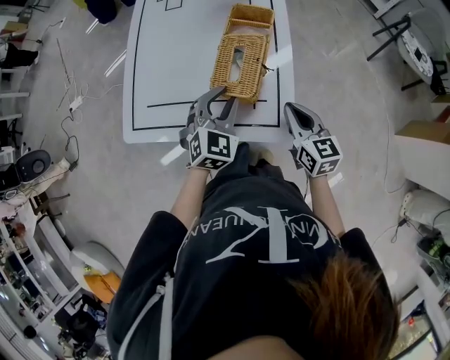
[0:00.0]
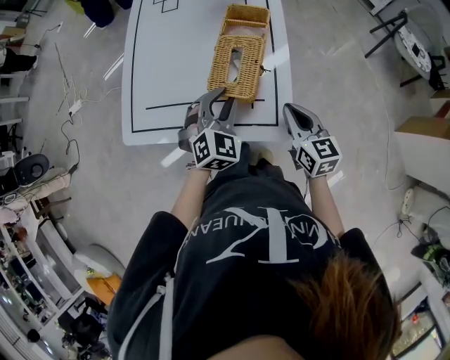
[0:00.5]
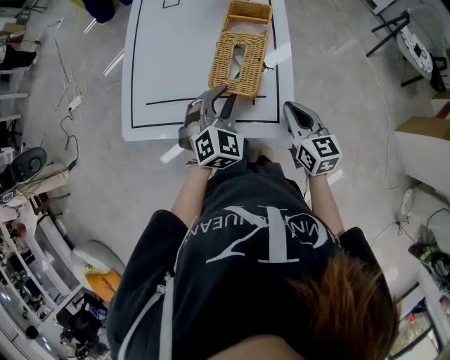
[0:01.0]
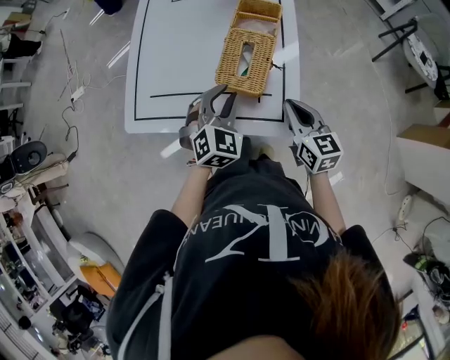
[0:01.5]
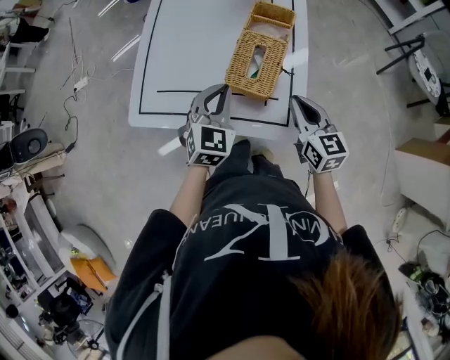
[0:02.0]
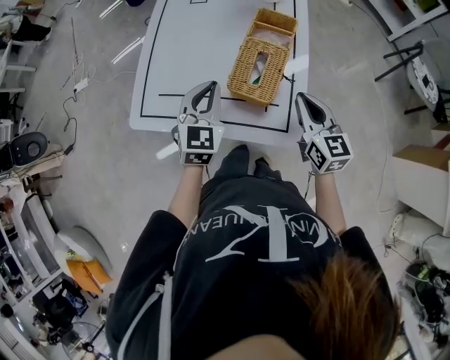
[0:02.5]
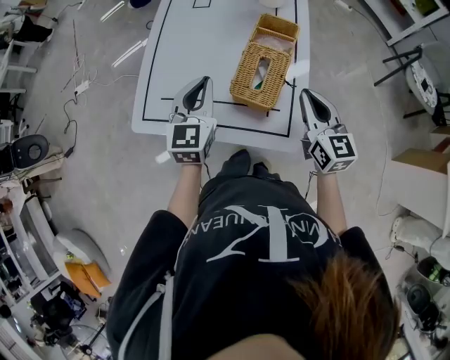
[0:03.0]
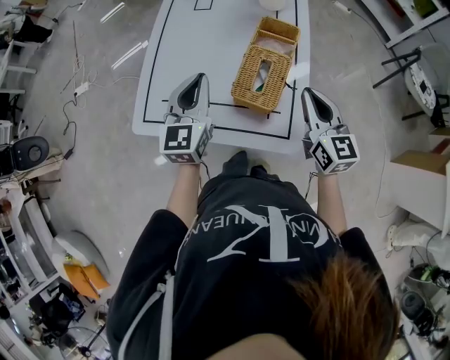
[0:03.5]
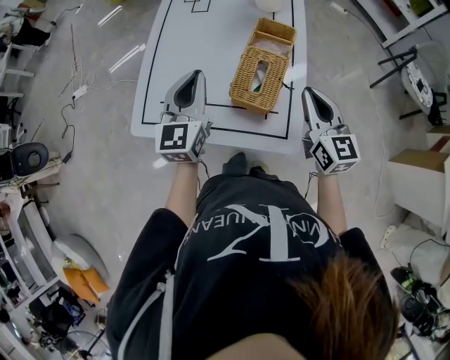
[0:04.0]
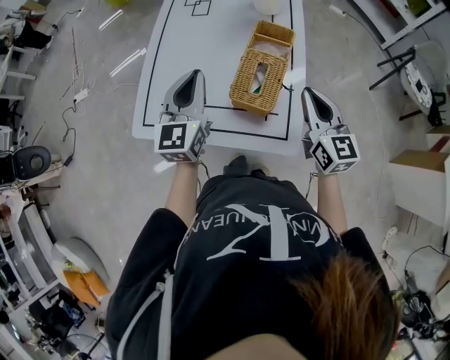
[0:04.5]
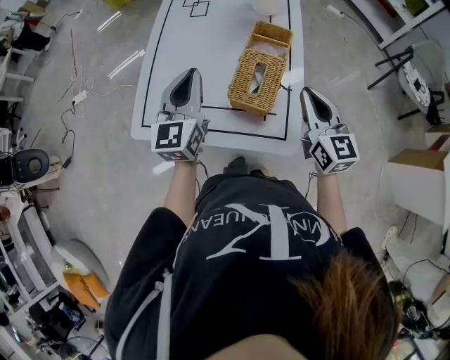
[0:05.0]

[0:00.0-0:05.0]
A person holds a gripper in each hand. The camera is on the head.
0:00.0 to 0:02.5: The left gripper shifts roughly 10 cm to the left, changes its angle by approximately 20 degrees, and closes, while the right gripper travels upward by some 5 cm.
0:02.5 to 0:05.0: The grippers both shift upward by roughly 10 cm. The left gripper rotates about 30 degrees.

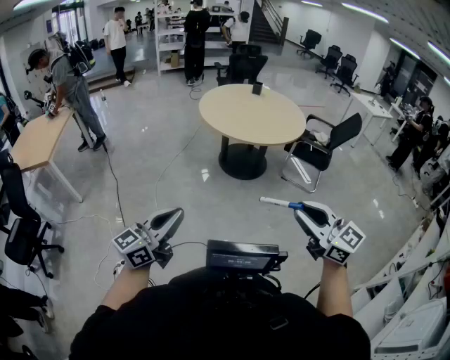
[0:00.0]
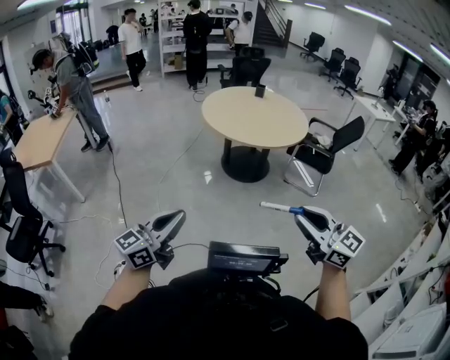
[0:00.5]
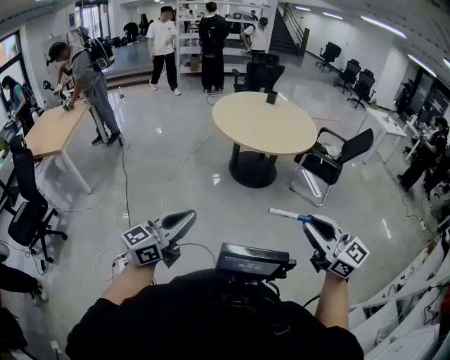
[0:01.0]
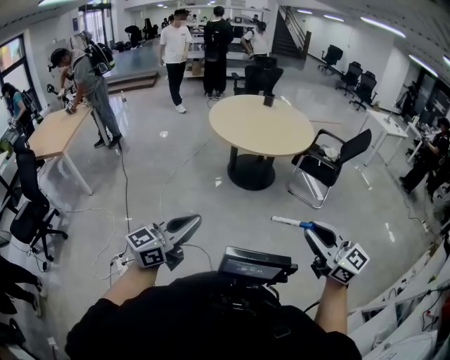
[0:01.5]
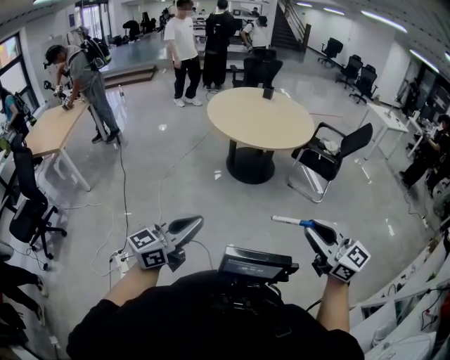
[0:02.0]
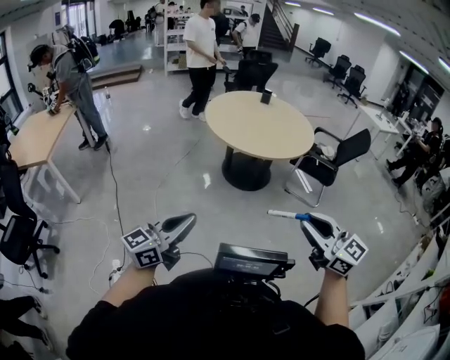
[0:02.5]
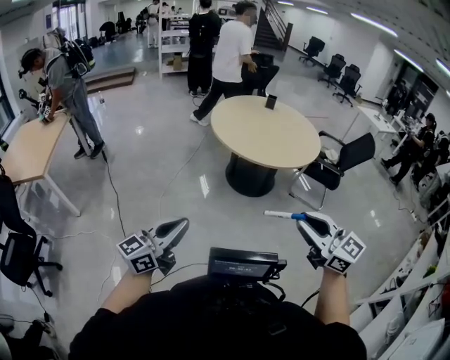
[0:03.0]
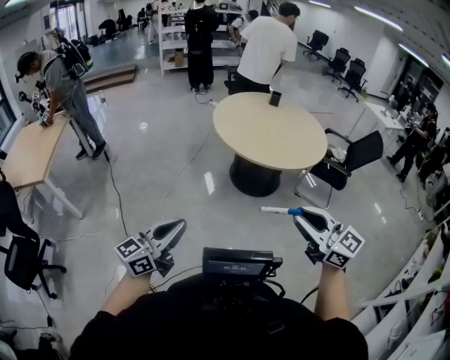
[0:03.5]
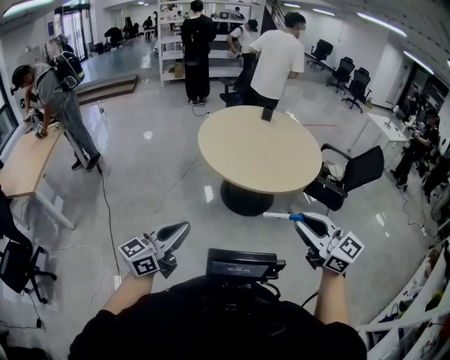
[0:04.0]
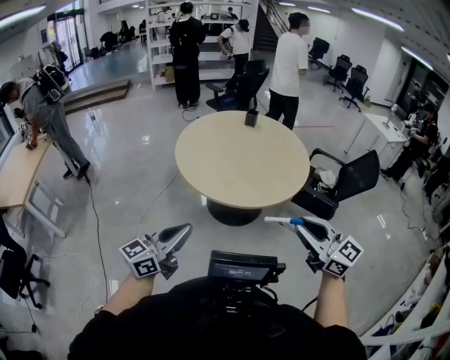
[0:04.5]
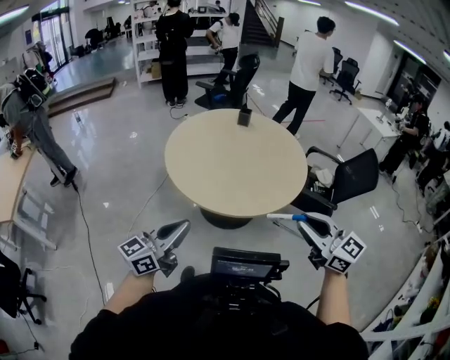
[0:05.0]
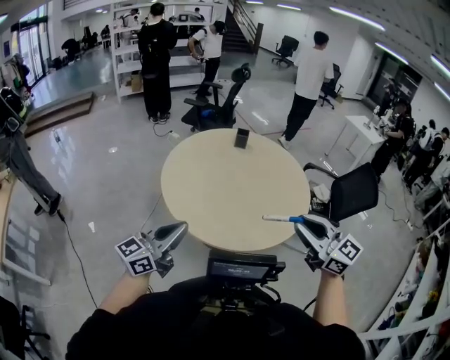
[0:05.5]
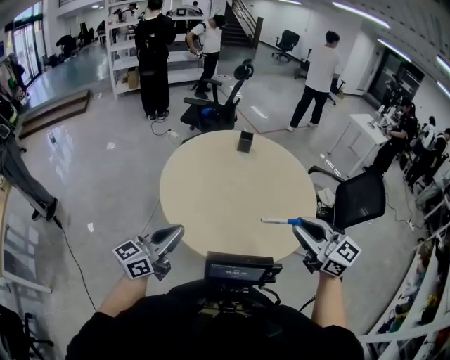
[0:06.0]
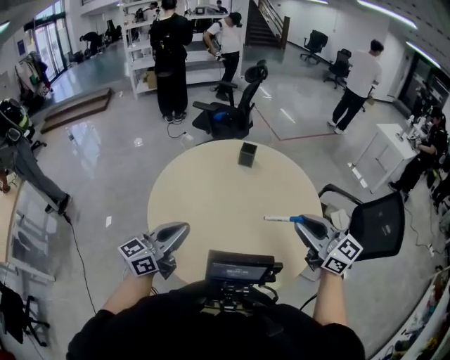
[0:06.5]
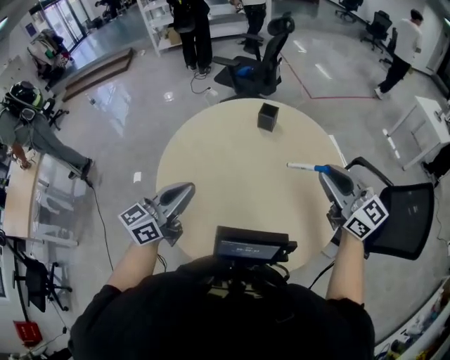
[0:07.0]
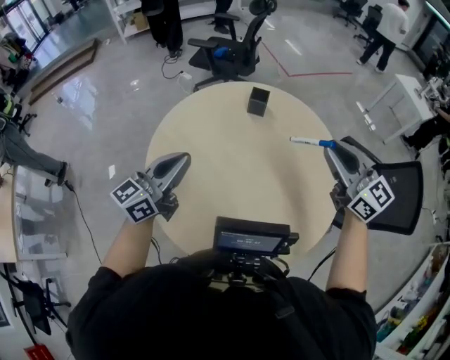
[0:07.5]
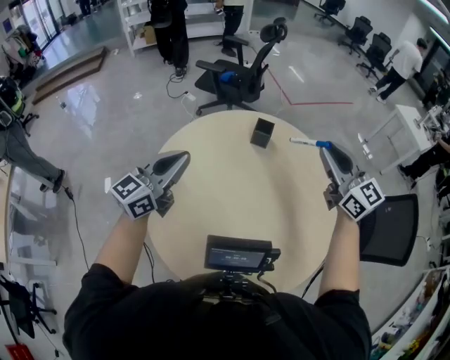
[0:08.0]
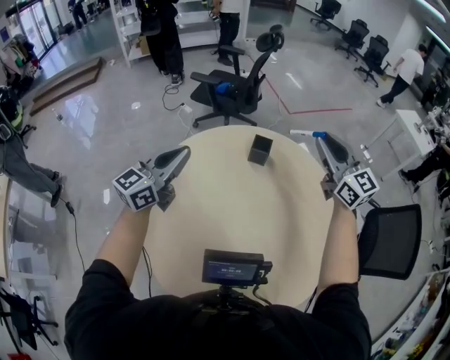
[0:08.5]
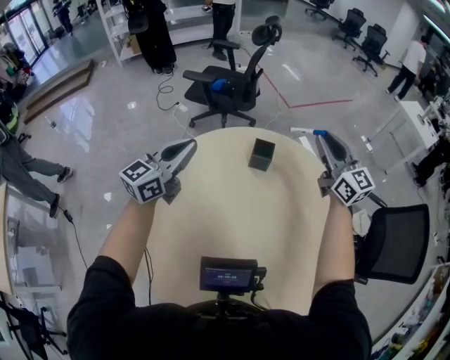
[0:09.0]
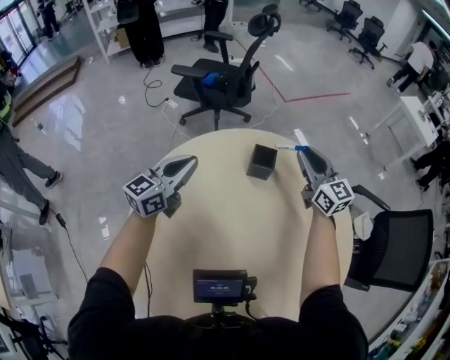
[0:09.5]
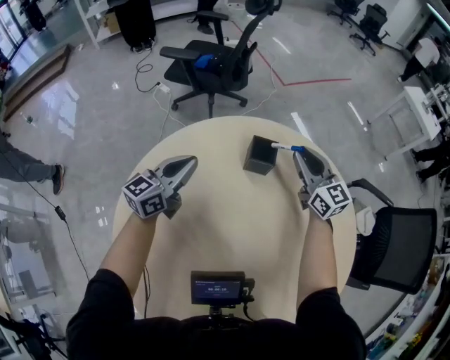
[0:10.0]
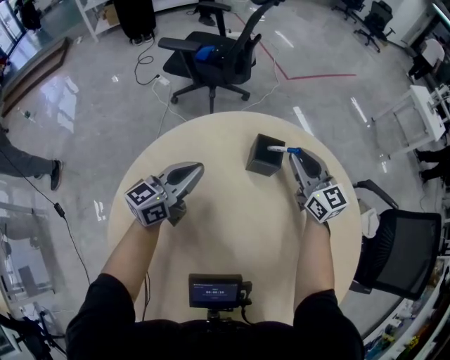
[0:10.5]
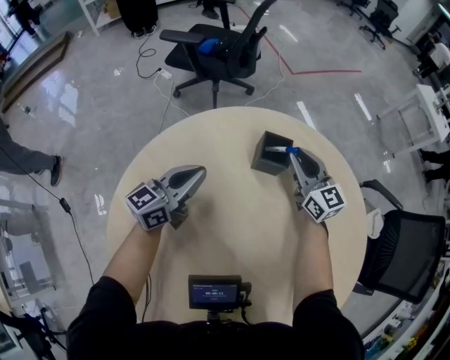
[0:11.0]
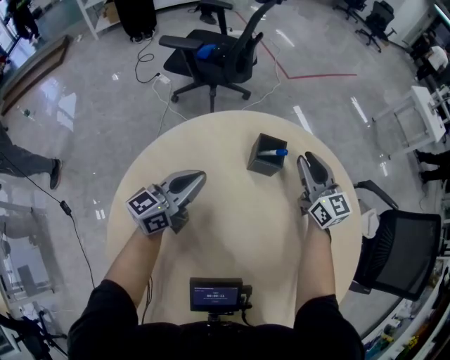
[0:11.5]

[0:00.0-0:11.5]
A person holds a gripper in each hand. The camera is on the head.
0:00.0 to 0:02.0: Both grippers travel together to the right, approximately 15 cm.
0:02.0 to 0:04.0: The grippers both shift forward by approximately 35 cm.
0:04.0 to 0:06.0: Both grippers are carried forward, about 50 cm.
0:06.0 to 0:07.5: The grippers both shift forward and to the right by approximately 35 cm.
0:07.5 to 0:09.5: The right gripper travels forward and downward by approximately 40 cm, while the left gripper moves forward, approximately 35 cm.
0:09.5 to 0:11.5: The grippers both shift downward by approximately 10 cm.

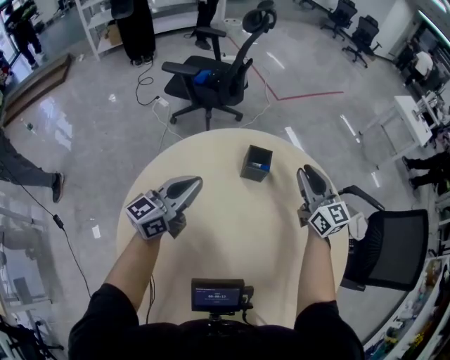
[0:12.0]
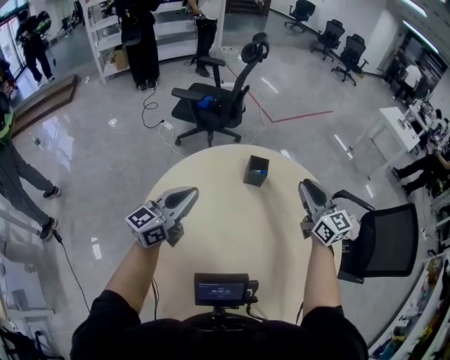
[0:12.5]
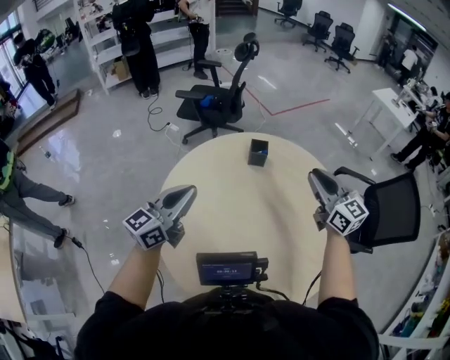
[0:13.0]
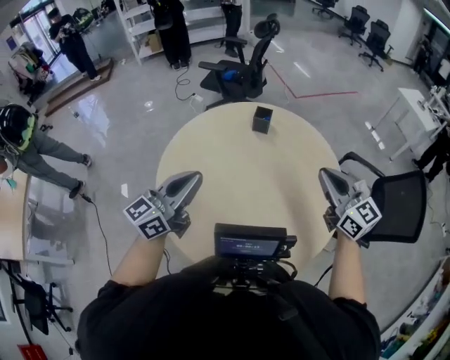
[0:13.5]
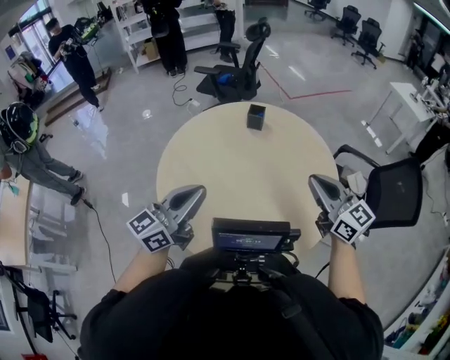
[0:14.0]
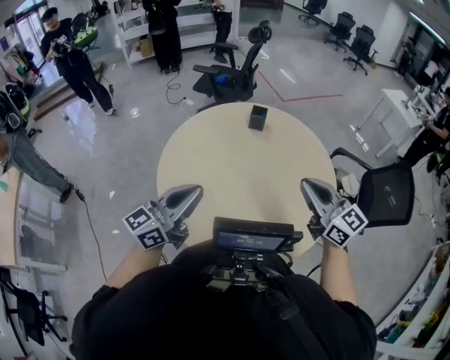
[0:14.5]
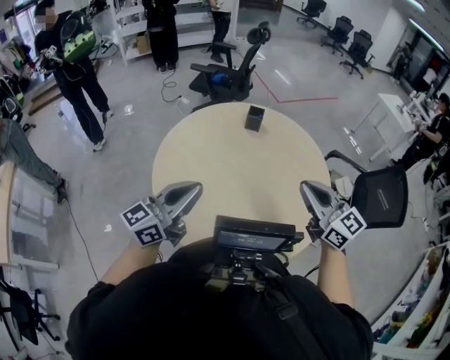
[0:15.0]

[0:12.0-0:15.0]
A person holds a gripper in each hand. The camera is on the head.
0:12.0 to 0:13.5: The two grippers go approximately 40 cm backward and upward.
0:13.5 to 0:15.0: The right gripper moves backward and to the left, about 10 cm, while the left gripper is displaced backward by roughly 5 cm.

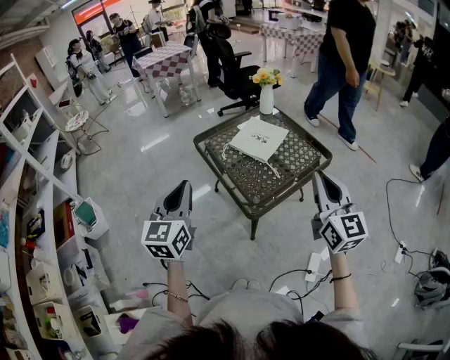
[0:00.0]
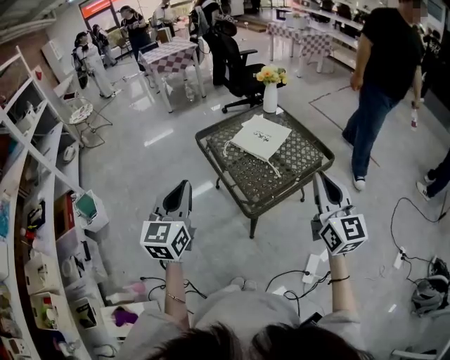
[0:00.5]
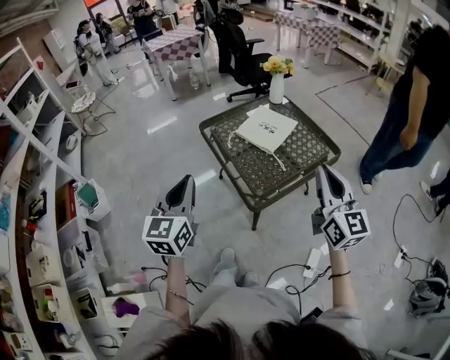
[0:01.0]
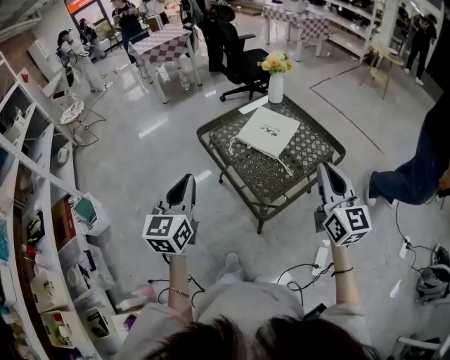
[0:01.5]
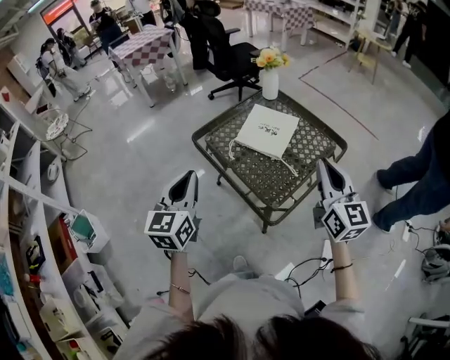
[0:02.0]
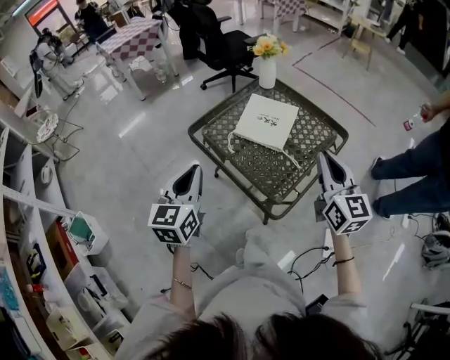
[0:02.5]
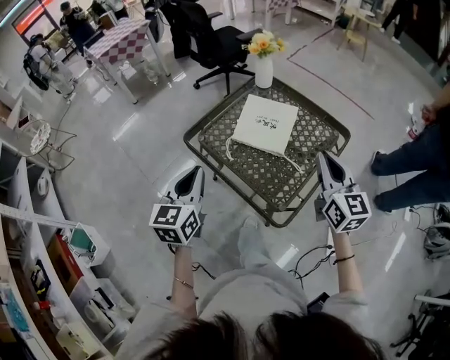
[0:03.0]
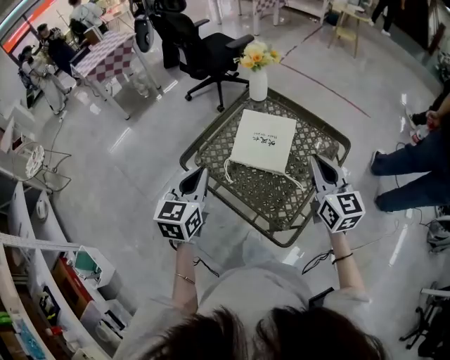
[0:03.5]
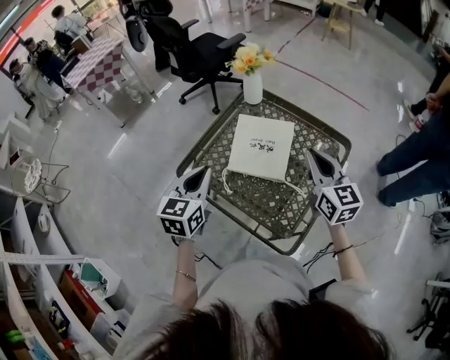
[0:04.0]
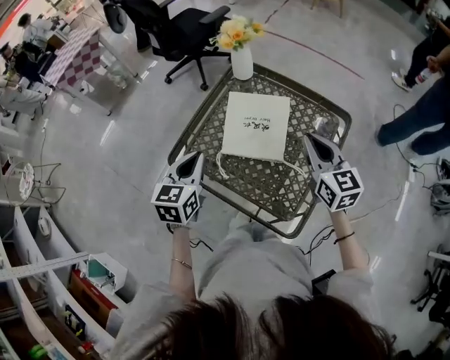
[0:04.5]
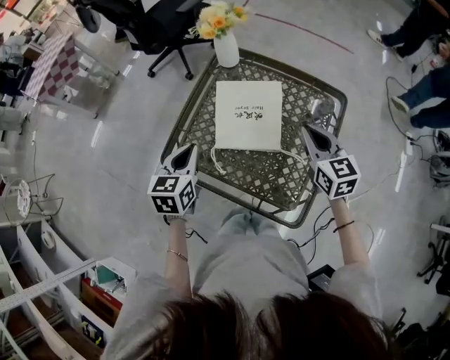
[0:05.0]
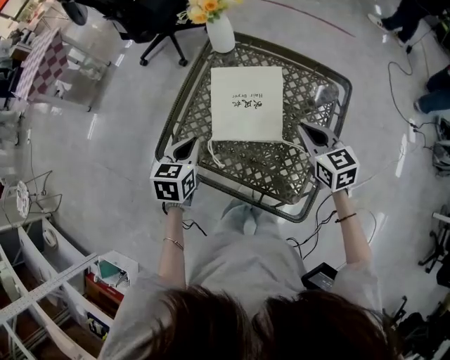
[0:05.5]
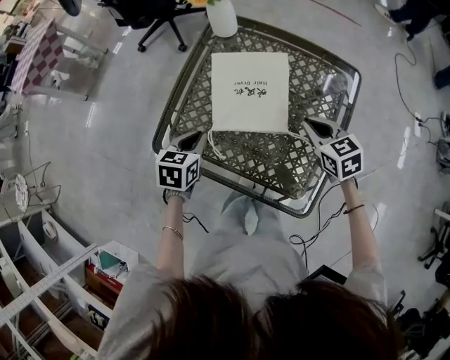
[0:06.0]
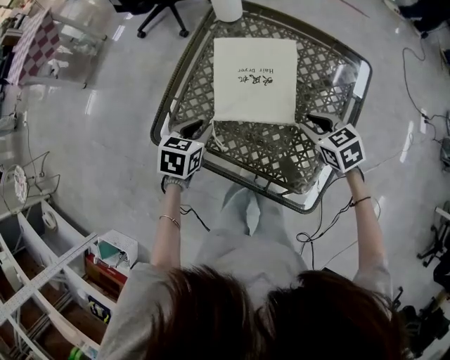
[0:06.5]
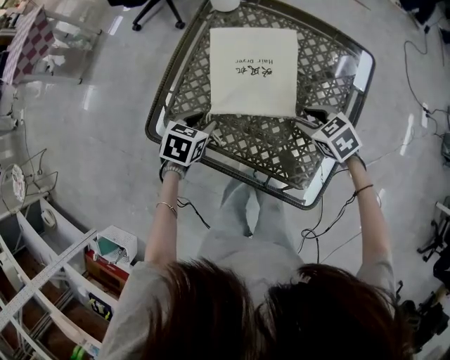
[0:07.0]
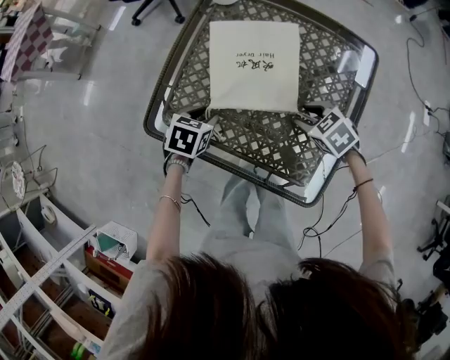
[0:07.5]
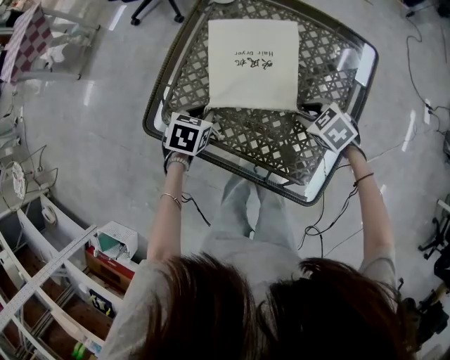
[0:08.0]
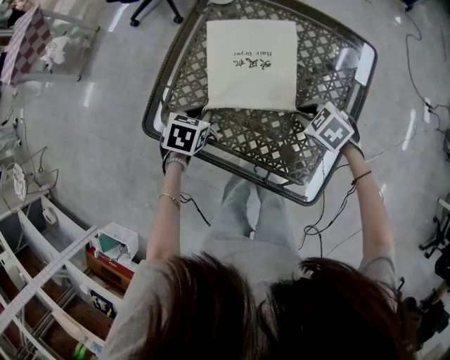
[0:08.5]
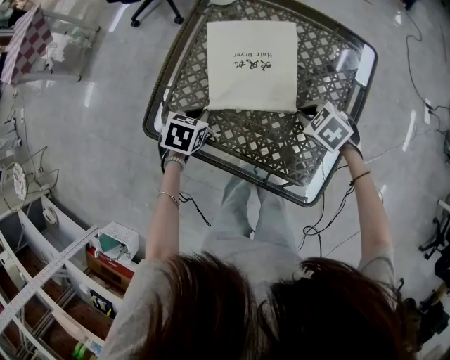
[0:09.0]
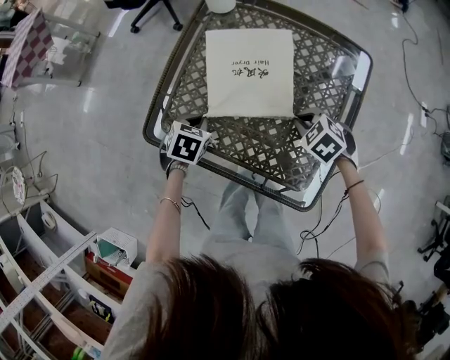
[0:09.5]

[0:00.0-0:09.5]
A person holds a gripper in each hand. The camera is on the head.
0:00.0 to 0:02.0: The left gripper goes approximately 15 cm forward. Meanwhile the right gripper heads forward and to the left, covering about 15 cm.
0:02.0 to 0:04.0: The two grippers go roughly 25 cm forward. The left gripper rotates roughly 20 degrees.
0:04.0 to 0:05.5: The right gripper moves downward, some 15 cm, and rotates about 20 degrees. The left gripper shifts approximately 15 cm downward and forward, and rotates roughly 20 degrees.
0:05.5 to 0:07.5: The grippers both shift downward by about 15 cm. The left gripper changes its angle by roughly 30 degrees, and opens. Meanwhile the right gripper tilts its fingers roughly 30 degrees downward, and opens its fingers.
0:07.5 to 0:09.5: The left gripper closes. The right gripper closes.
